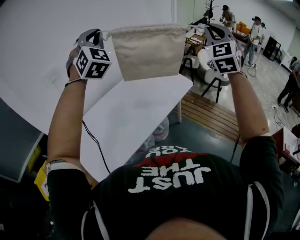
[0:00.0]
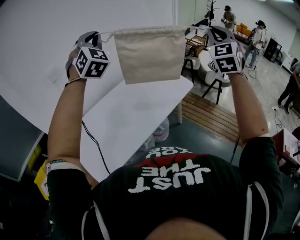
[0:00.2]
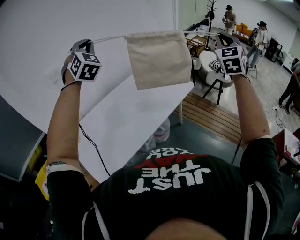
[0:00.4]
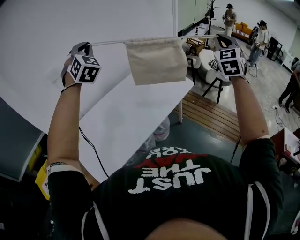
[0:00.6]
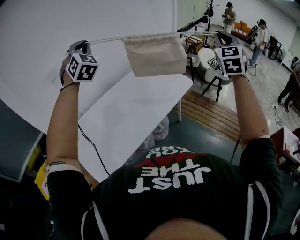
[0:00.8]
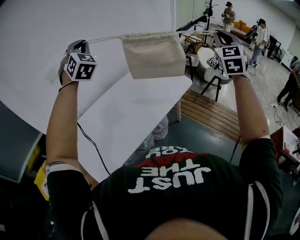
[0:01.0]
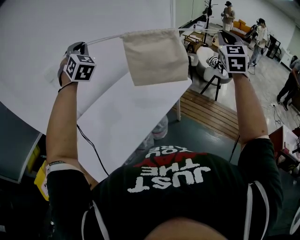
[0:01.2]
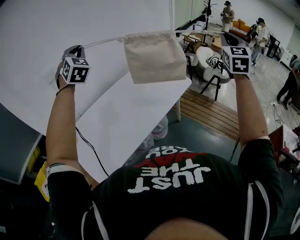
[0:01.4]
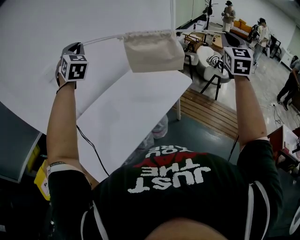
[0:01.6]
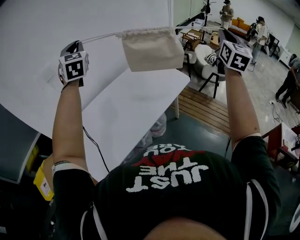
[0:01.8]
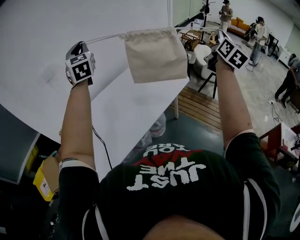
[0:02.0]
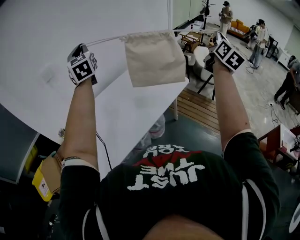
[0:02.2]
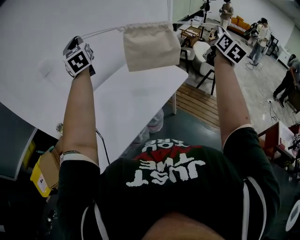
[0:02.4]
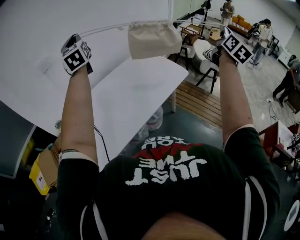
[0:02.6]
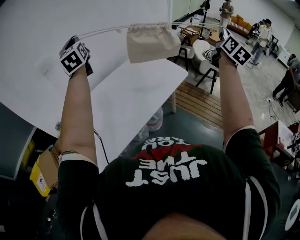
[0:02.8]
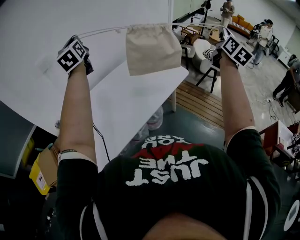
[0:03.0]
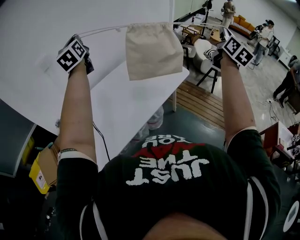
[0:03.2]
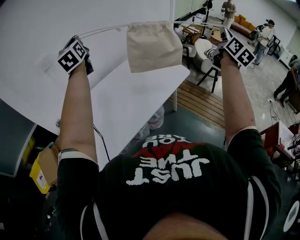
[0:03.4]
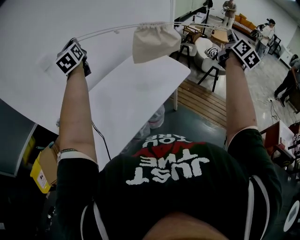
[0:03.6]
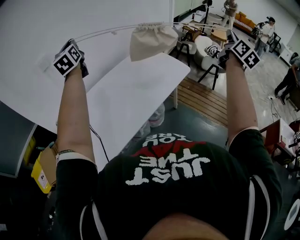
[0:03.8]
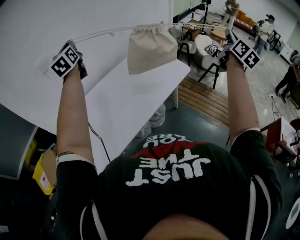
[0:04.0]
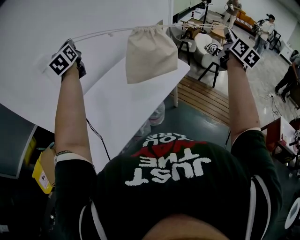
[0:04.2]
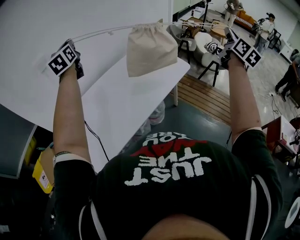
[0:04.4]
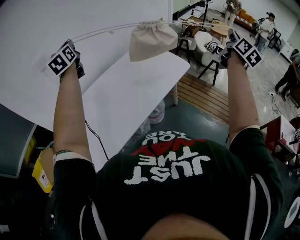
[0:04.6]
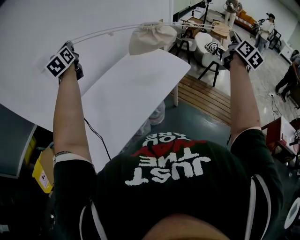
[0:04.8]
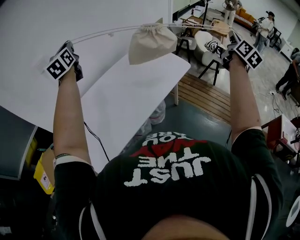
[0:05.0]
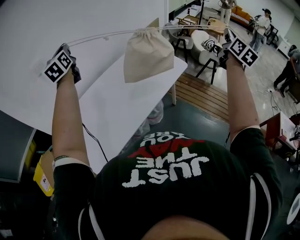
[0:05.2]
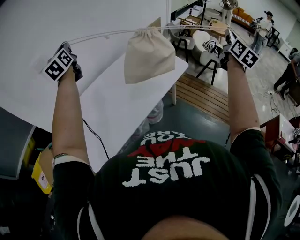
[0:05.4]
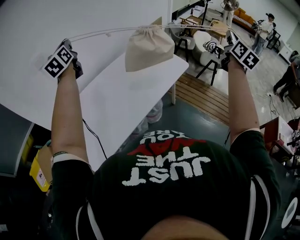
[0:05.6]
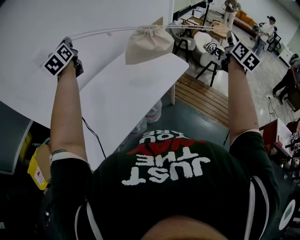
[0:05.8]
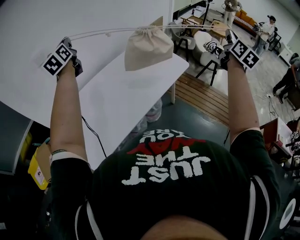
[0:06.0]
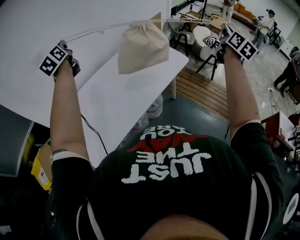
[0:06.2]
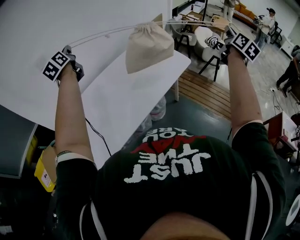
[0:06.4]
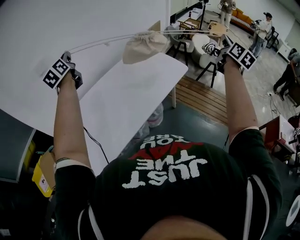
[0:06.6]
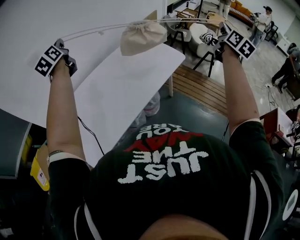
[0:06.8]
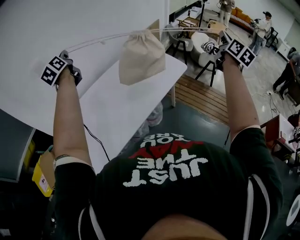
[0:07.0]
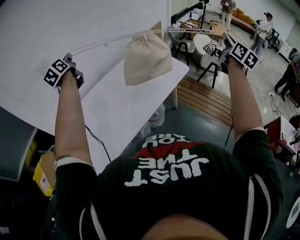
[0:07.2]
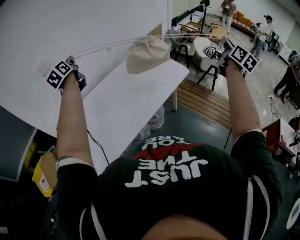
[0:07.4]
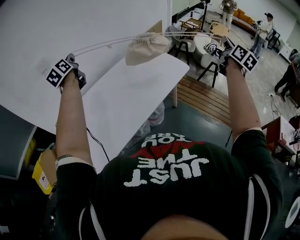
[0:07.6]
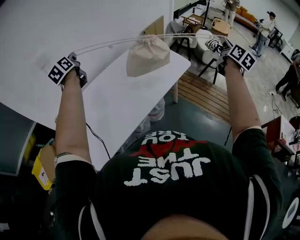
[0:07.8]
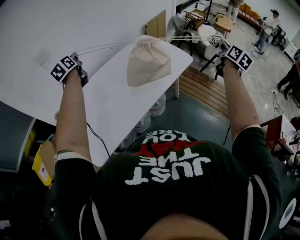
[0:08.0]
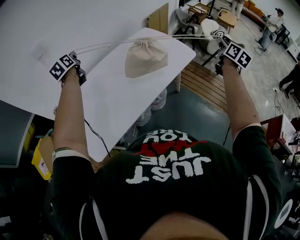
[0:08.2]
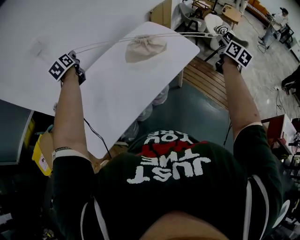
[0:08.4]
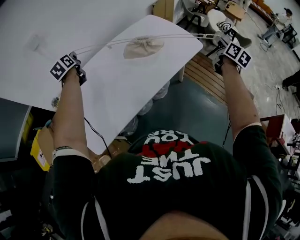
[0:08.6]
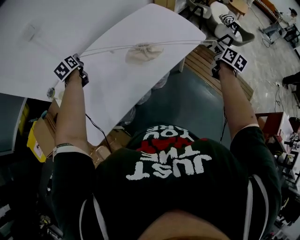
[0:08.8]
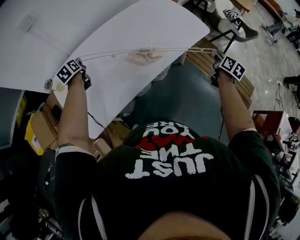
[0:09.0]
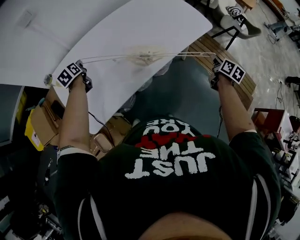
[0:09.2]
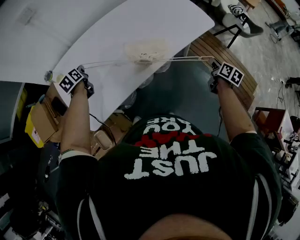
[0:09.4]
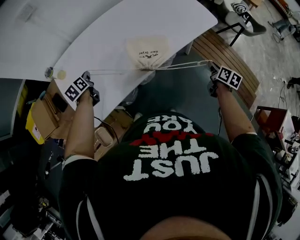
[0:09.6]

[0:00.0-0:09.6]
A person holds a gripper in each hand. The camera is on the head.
0:00.0 to 0:01.6: The right gripper travels to the right by approximately 10 cm, and changes its angle by approximately 20 degrees; the left gripper is displaced to the left and downward by roughly 10 cm.
0:01.6 to 0:03.2: The right gripper swivels some 40 degrees; the left gripper rolls counterclockwise, seen from behind, by about 50 degrees.
0:03.2 to 0:04.8: The right gripper is displaced to the right by some 5 cm. Meanwhile the left gripper shifts by about 5 cm.
0:04.8 to 0:06.4: The grippers stay close to where they were, moving slightly.
0:06.4 to 0:08.0: Both grippers travel together downward, roughly 10 cm.
0:08.0 to 0:09.6: The left gripper goes some 40 cm downward and backward, and changes its angle by roughly 30 degrees; the right gripper heads downward, covering some 35 cm, and tilts its fingers some 30 degrees downward.

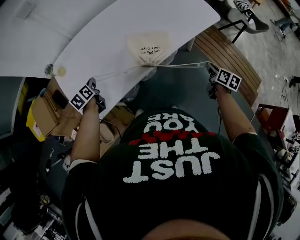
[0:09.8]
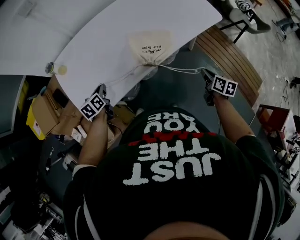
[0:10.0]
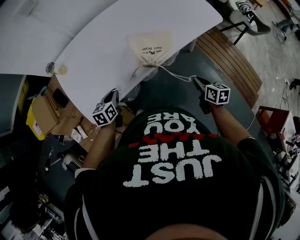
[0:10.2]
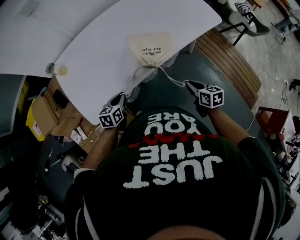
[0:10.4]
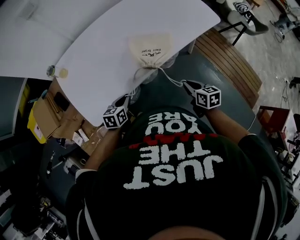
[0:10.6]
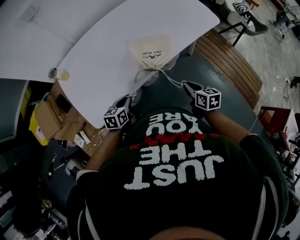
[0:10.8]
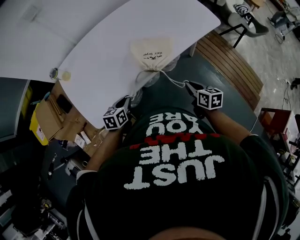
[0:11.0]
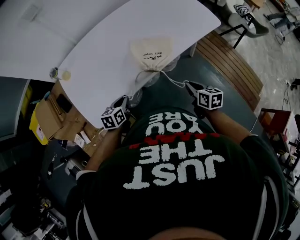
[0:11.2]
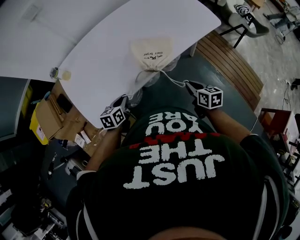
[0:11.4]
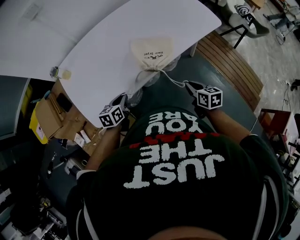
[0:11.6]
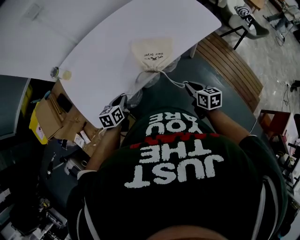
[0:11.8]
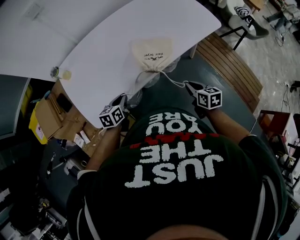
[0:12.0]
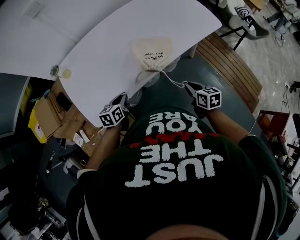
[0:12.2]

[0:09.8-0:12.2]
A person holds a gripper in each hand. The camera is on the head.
0:09.8 to 0:11.0: The right gripper is displaced to the left by about 15 cm, and turns by roughly 20 degrees, while the left gripper travels to the right and backward by approximately 20 cm, and turns by roughly 30 degrees.
0:11.0 to 0:12.2: The grippers stay close to where they were, moving slightly.

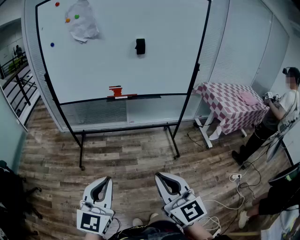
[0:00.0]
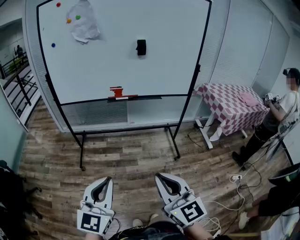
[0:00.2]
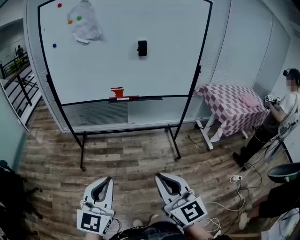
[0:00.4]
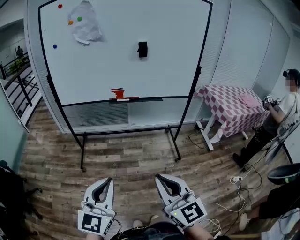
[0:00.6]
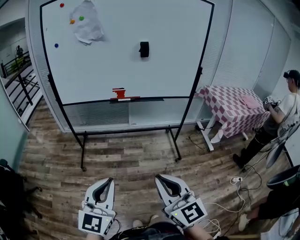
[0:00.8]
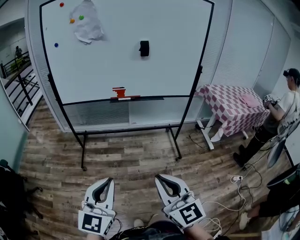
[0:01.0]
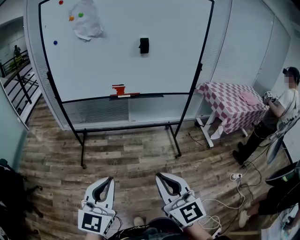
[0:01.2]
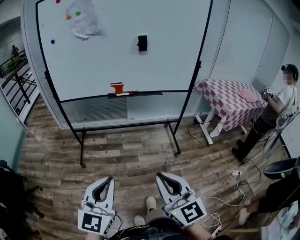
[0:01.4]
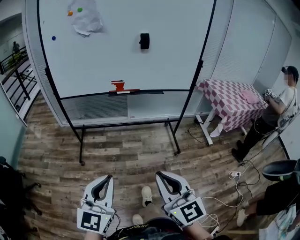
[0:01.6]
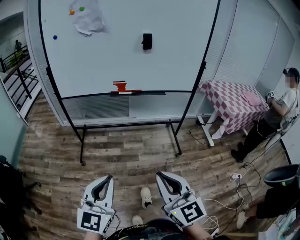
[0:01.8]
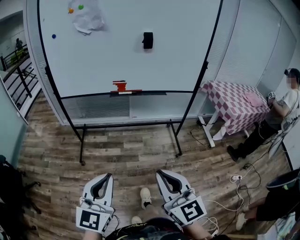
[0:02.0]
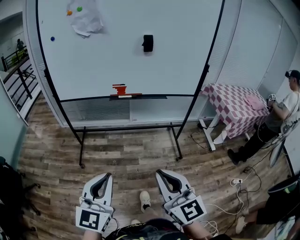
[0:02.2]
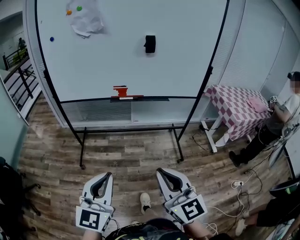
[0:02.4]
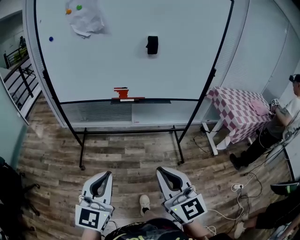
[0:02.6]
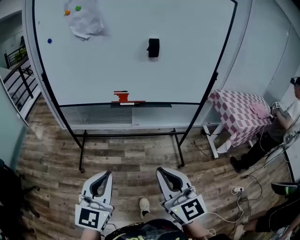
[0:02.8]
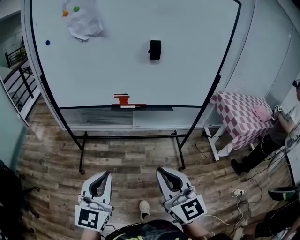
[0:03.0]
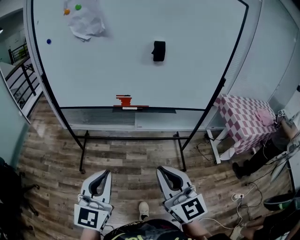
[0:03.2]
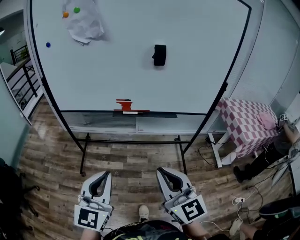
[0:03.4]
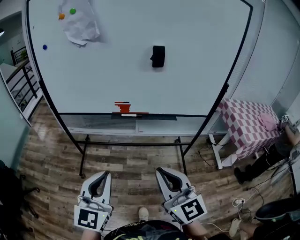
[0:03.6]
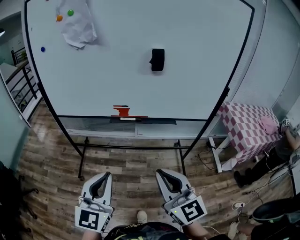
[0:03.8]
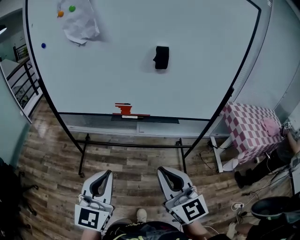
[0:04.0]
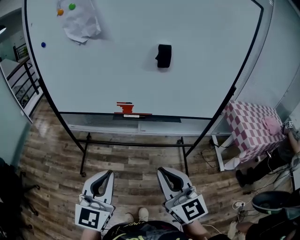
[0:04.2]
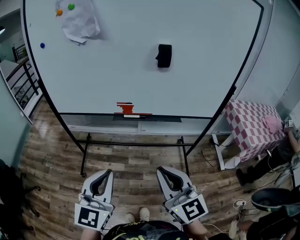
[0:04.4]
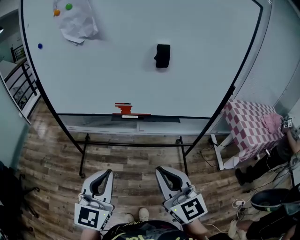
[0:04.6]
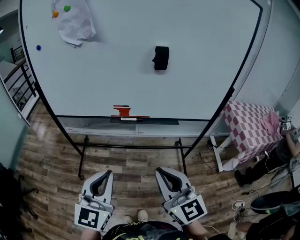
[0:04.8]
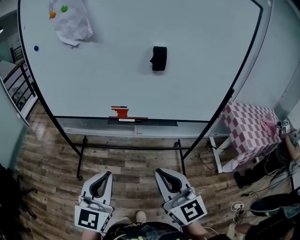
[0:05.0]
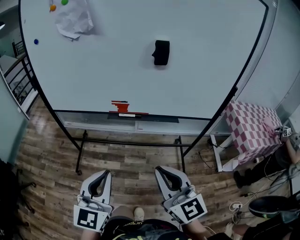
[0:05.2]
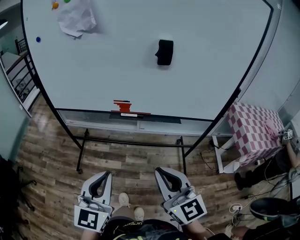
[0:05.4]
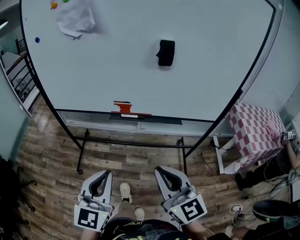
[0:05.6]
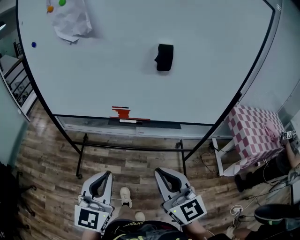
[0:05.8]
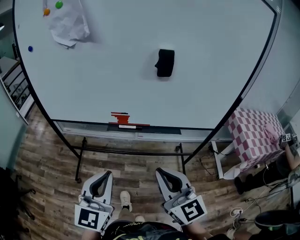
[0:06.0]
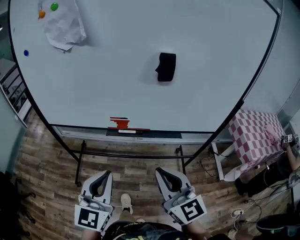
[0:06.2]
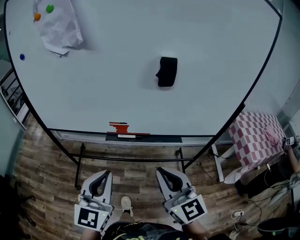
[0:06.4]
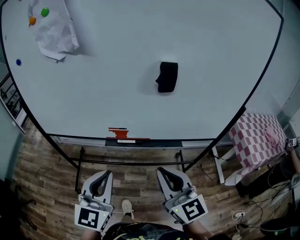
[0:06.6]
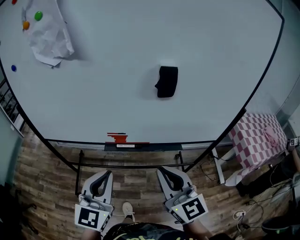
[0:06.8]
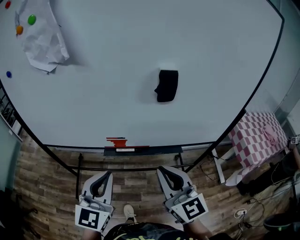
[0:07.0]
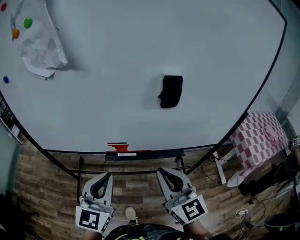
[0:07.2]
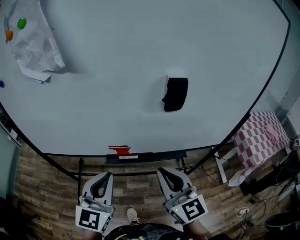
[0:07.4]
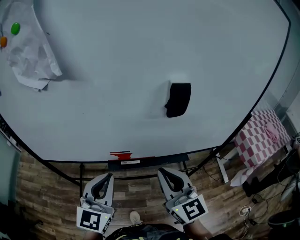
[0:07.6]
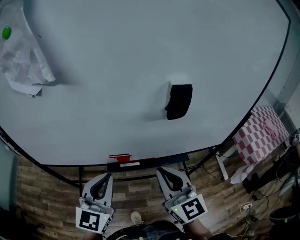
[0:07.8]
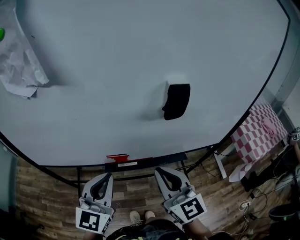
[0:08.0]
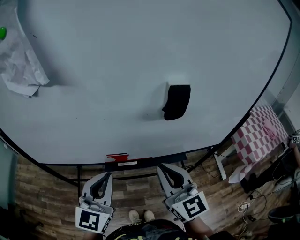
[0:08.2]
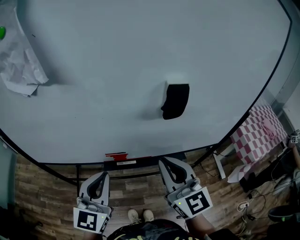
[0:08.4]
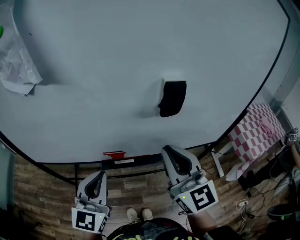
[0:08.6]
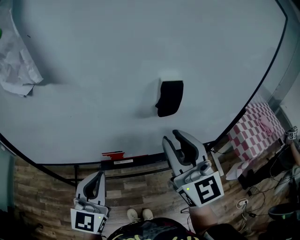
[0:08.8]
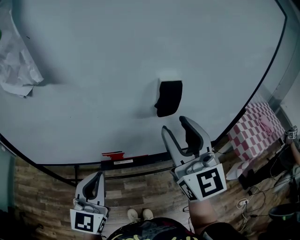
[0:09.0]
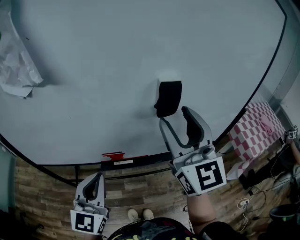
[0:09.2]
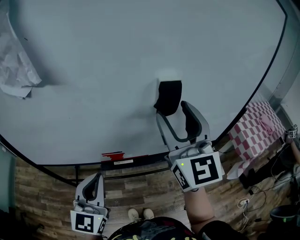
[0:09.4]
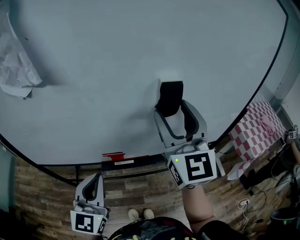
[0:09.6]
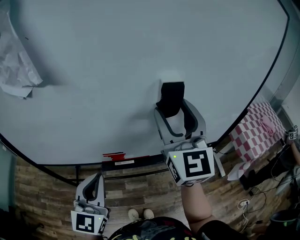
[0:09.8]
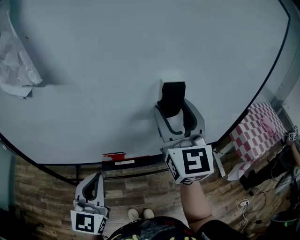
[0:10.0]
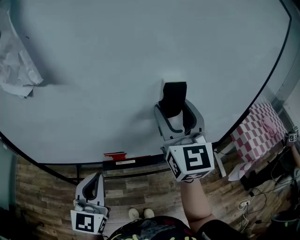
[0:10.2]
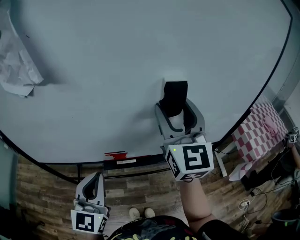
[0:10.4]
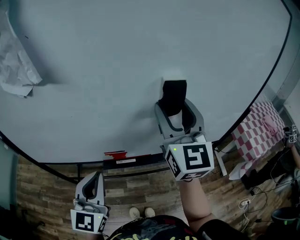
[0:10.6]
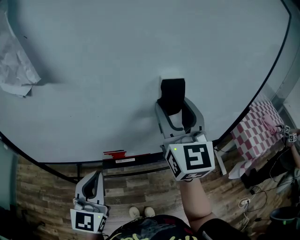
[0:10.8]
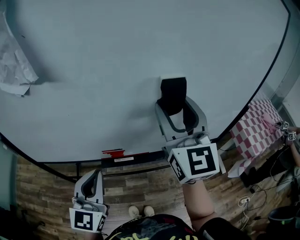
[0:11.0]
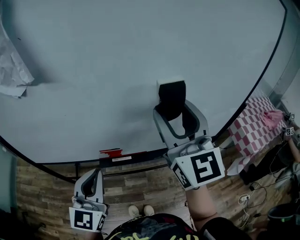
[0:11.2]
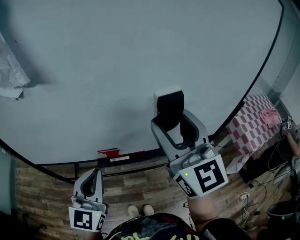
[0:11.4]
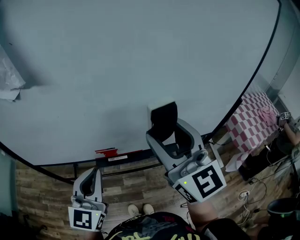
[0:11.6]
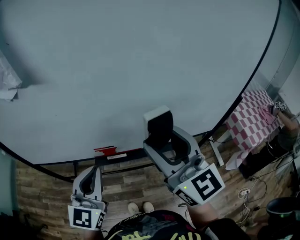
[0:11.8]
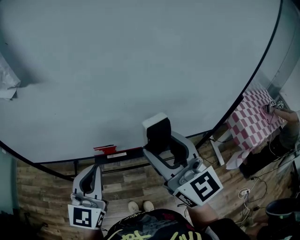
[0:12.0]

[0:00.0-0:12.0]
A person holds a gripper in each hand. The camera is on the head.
0:00.0 to 0:01.6: There are only small adjustments of the grippers.
0:01.6 to 0:03.0: The two grippers go roughly 15 cm forward.
0:03.0 to 0:04.4: Both grippers move forward, about 10 cm.
0:04.4 to 0:06.0: Both grippers move forward, roughly 10 cm.
0:06.0 to 0:07.6: The two grippers go roughly 15 cm forward.
0:07.6 to 0:09.0: The right gripper shifts some 15 cm upward and forward, and opens.
0:09.0 to 0:10.4: The right gripper is displaced forward by some 5 cm.
0:10.4 to 0:12.0: The right gripper travels backward and downward by some 10 cm, and turns by roughly 20 degrees.
